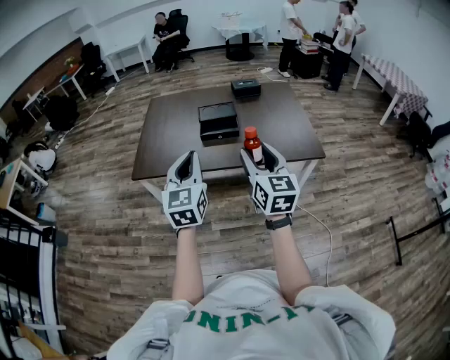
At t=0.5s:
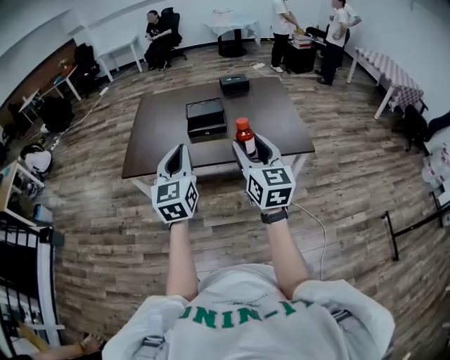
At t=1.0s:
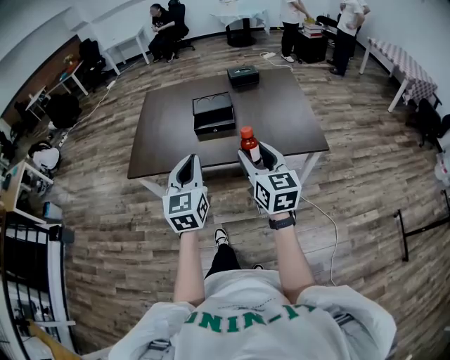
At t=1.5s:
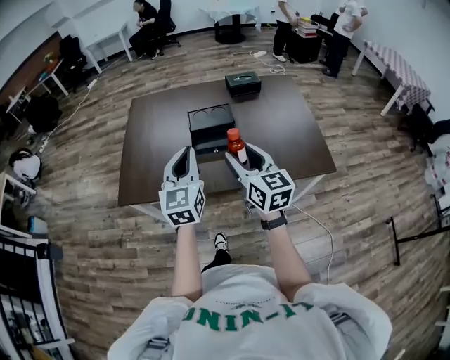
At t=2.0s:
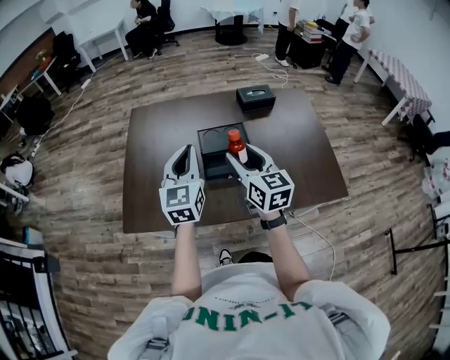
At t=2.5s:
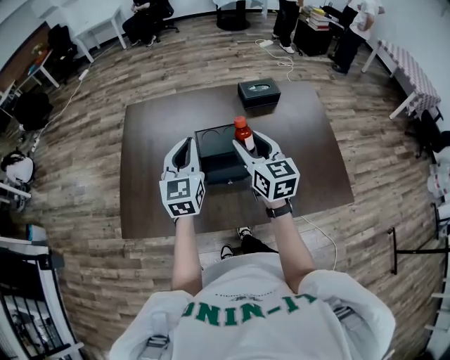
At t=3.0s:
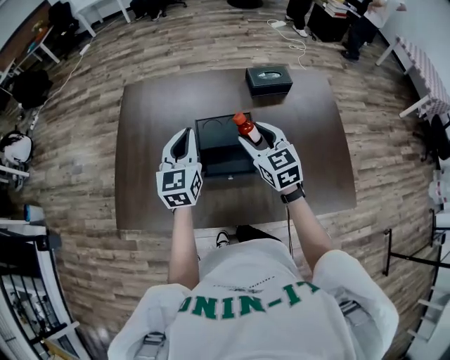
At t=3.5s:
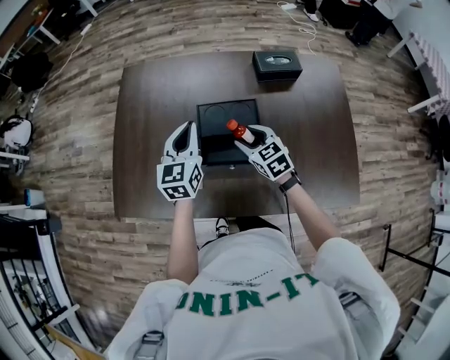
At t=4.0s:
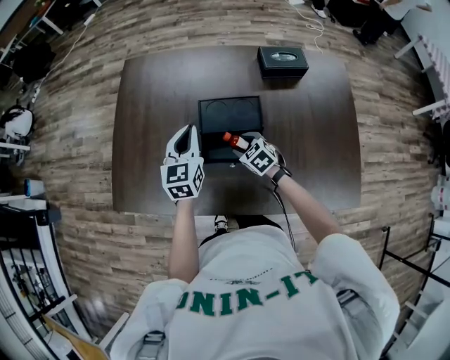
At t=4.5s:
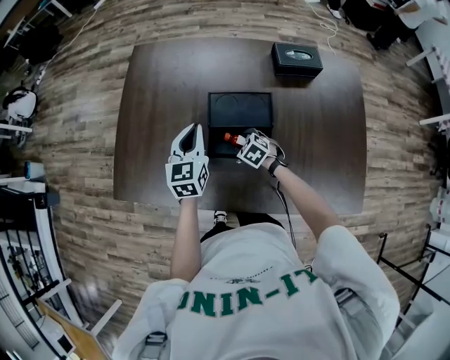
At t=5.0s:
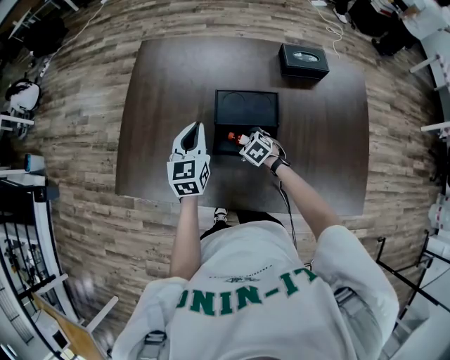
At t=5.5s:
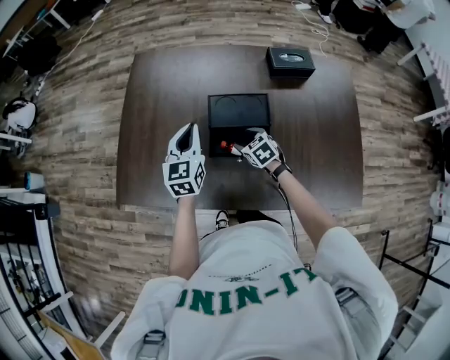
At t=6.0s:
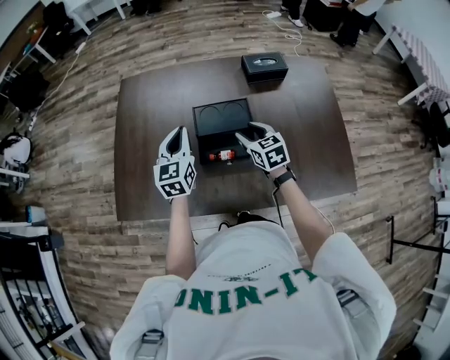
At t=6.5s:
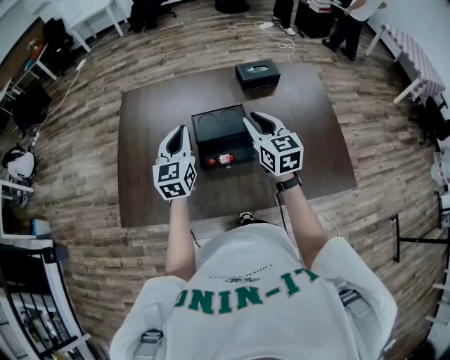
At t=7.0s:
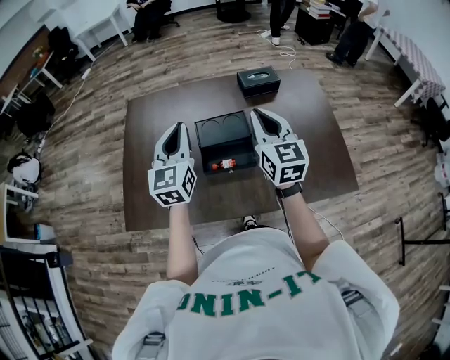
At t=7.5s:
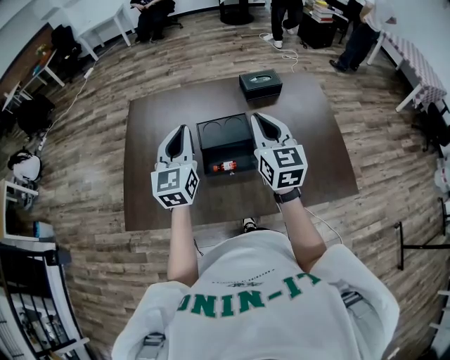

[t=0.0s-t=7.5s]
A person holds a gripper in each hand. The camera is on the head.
t=0.0s to t=2.0s: Both grippers are carried forward, about 40 cm.
t=2.0s to t=4.0s: The left gripper goes about 25 cm downward and forward, while the right gripper goes approximately 35 cm downward and forward, and angles its fingers downward, by roughly 40 degrees.
t=5.5s to t=7.5s: The right gripper goes approximately 35 cm upward, angles its fingers upward, by approximately 50 degrees, and closes; the left gripper is displaced upward by roughly 15 cm.

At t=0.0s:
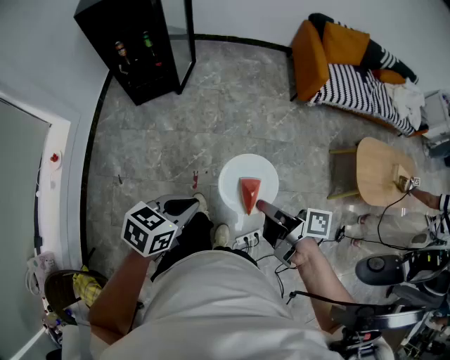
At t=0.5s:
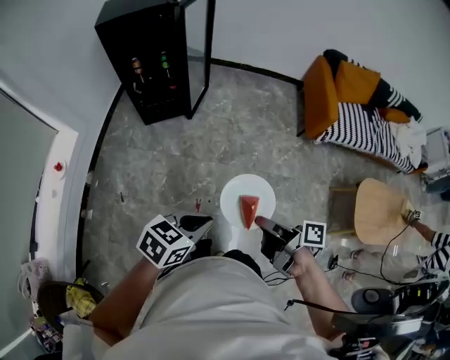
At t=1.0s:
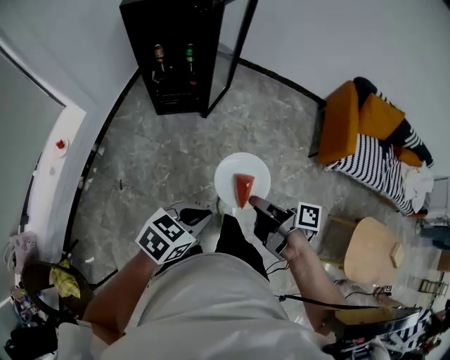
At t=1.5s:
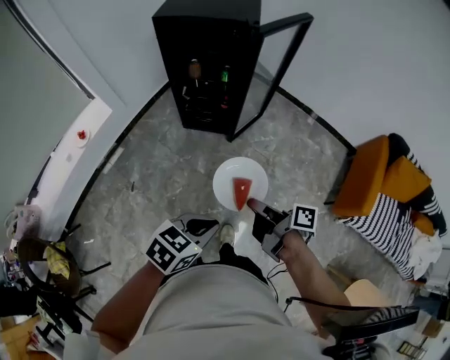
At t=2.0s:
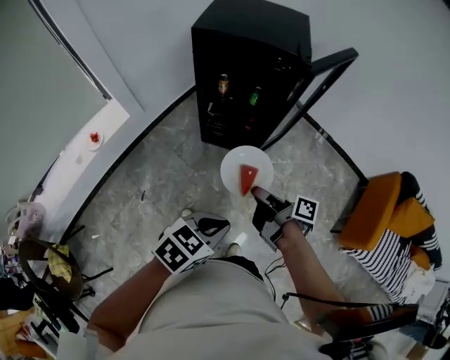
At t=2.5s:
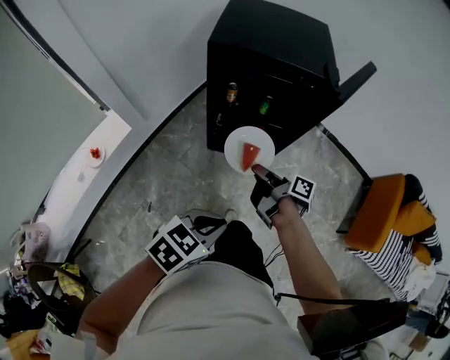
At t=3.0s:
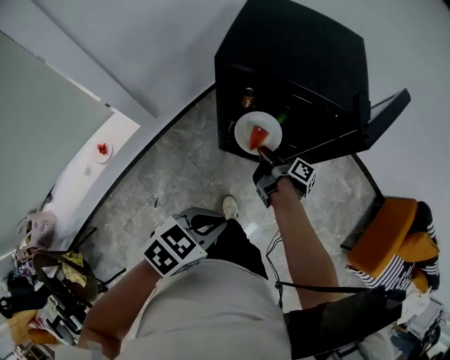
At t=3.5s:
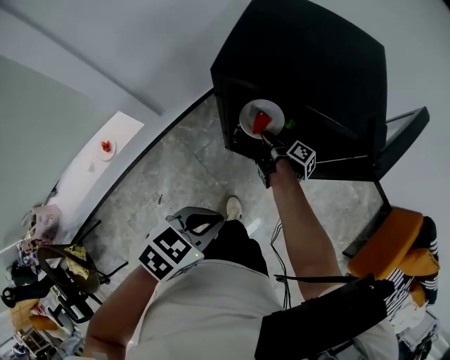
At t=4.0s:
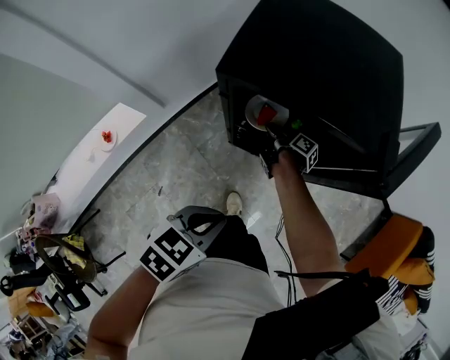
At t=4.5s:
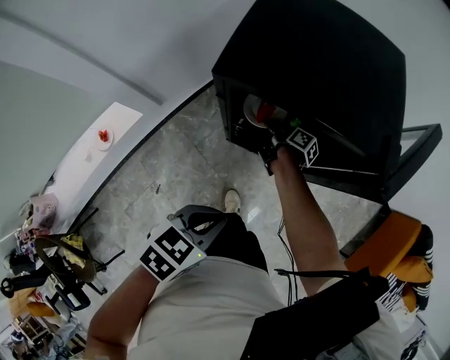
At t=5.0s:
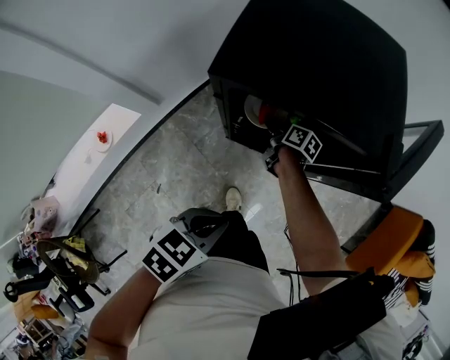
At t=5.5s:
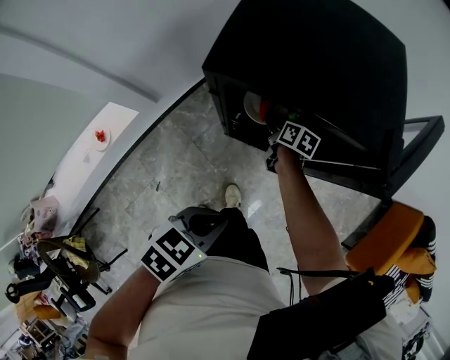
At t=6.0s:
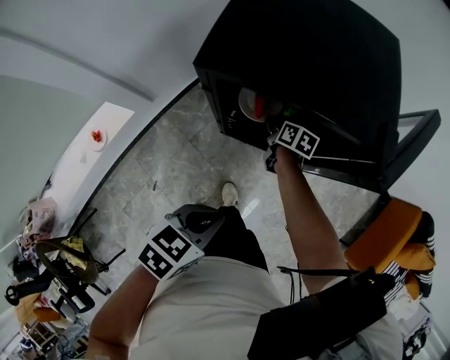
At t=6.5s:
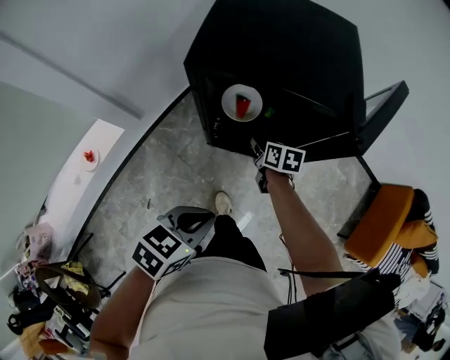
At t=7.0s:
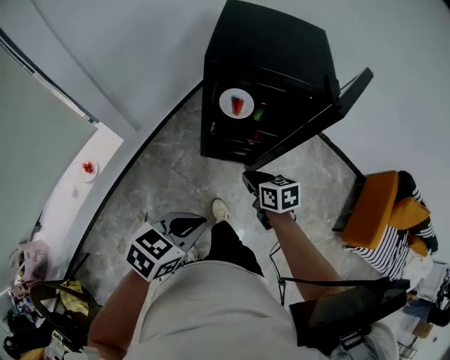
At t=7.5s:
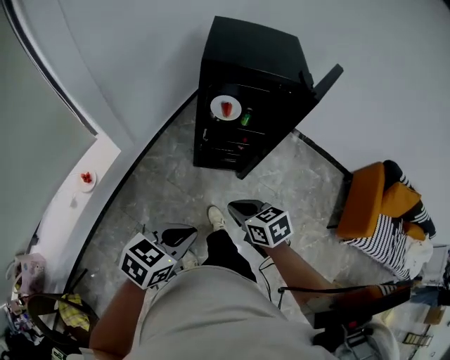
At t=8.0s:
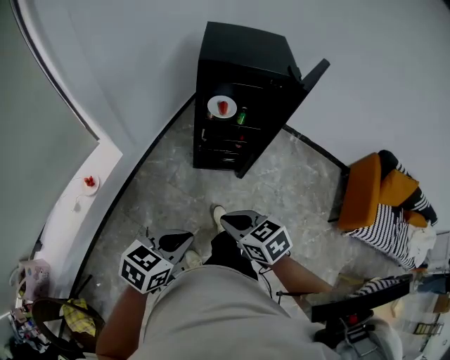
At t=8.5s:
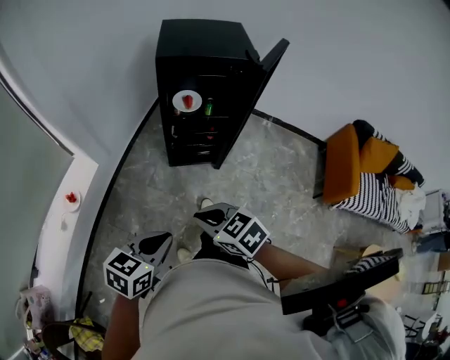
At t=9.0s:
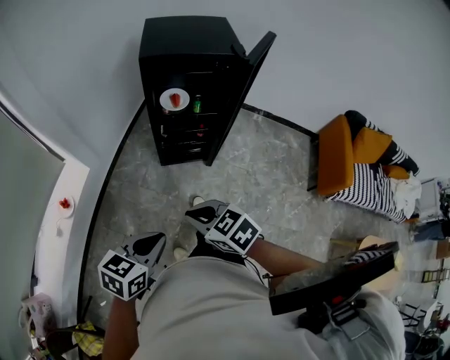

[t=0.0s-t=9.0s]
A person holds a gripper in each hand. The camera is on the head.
t=0.0s to t=2.0s: The left gripper ends up roughly 40 cm from where it was, and swivels approximately 20 degrees.
t=2.0s to t=4.5s: The left gripper changes place by approximately 30 cm.
t=4.5s to t=7.0s: The left gripper ends up about 15 cm from where it was.
t=7.0s to t=9.0s: The left gripper ends up some 15 cm from where it was.

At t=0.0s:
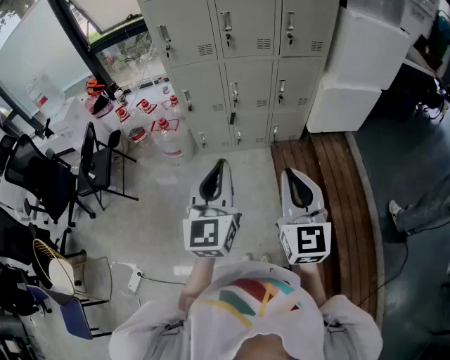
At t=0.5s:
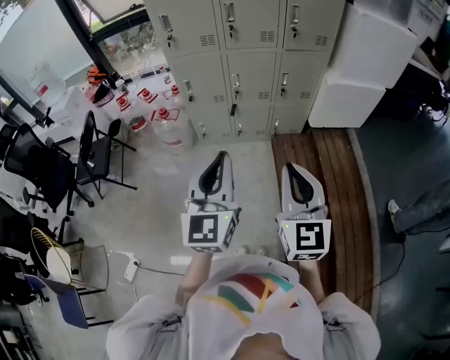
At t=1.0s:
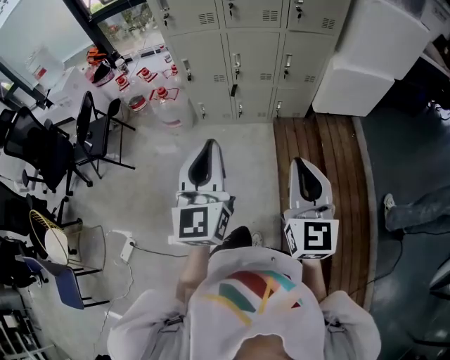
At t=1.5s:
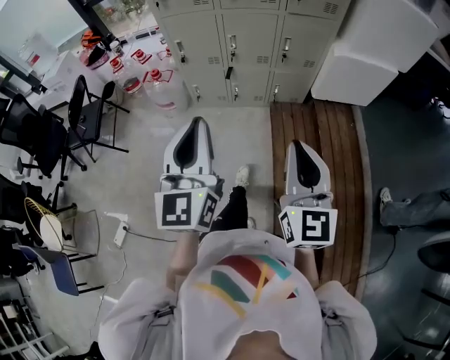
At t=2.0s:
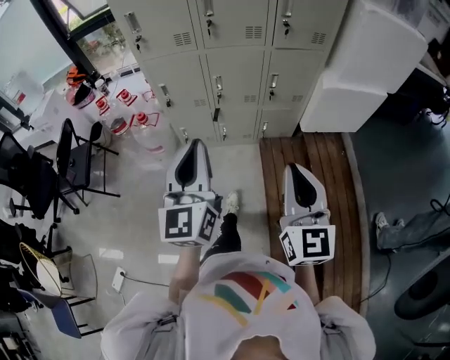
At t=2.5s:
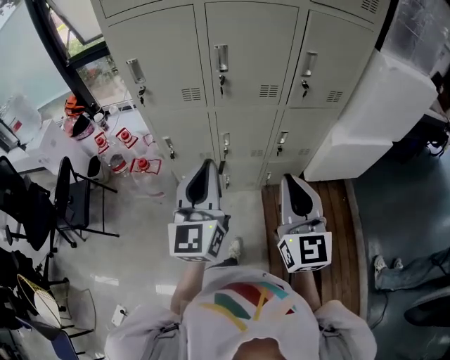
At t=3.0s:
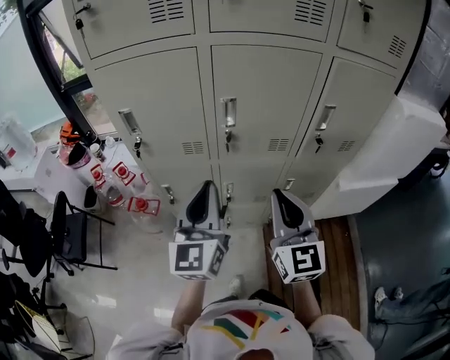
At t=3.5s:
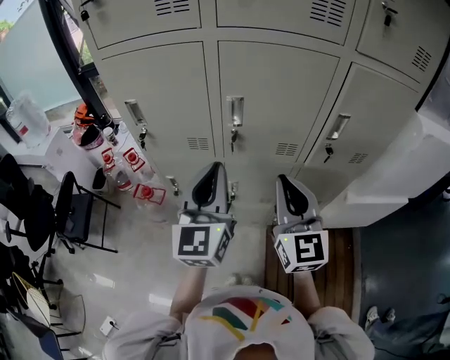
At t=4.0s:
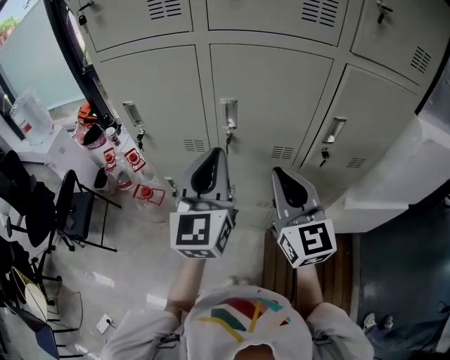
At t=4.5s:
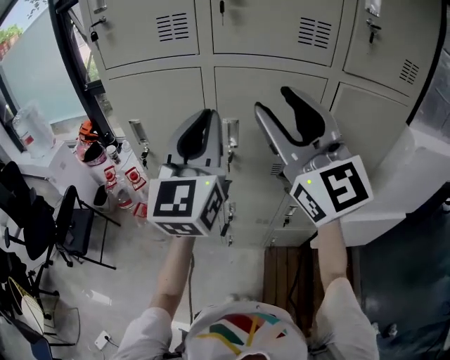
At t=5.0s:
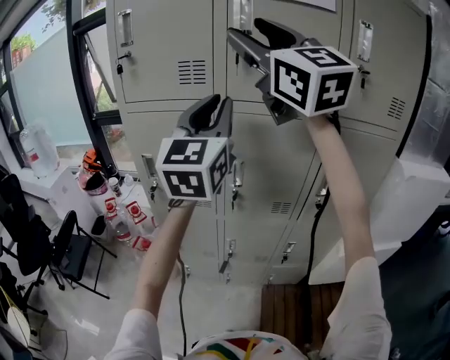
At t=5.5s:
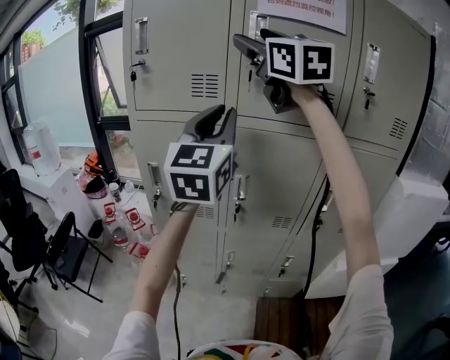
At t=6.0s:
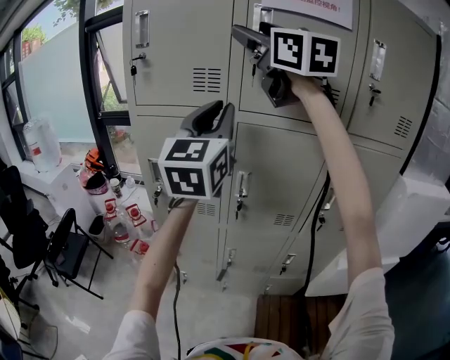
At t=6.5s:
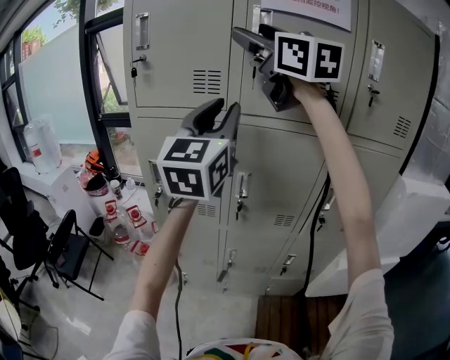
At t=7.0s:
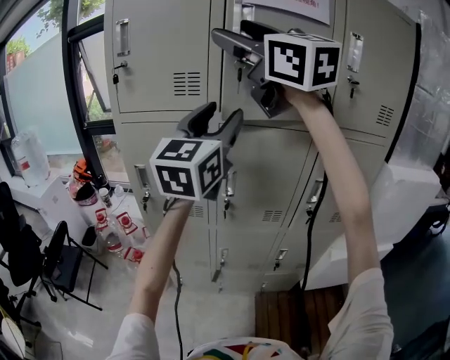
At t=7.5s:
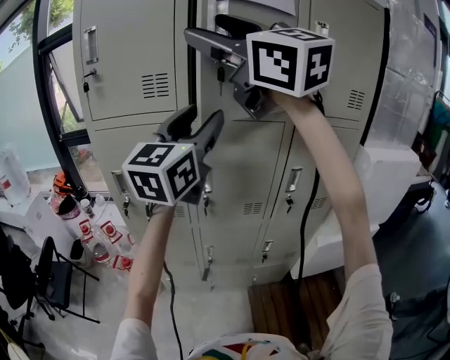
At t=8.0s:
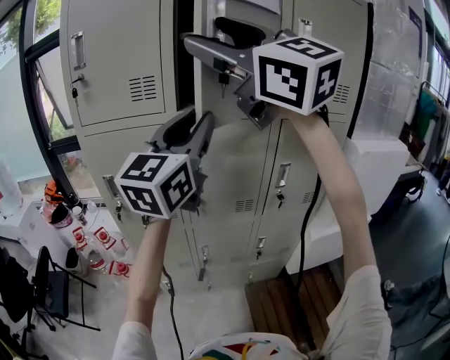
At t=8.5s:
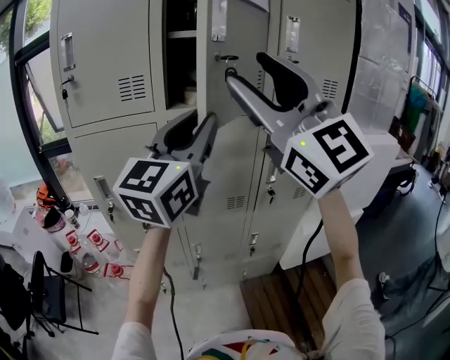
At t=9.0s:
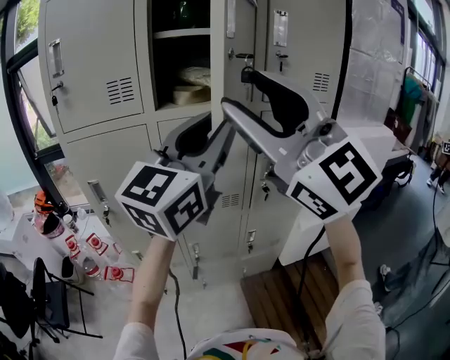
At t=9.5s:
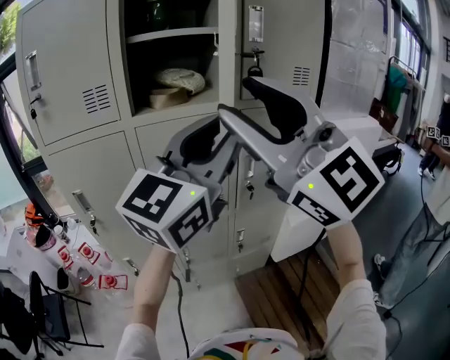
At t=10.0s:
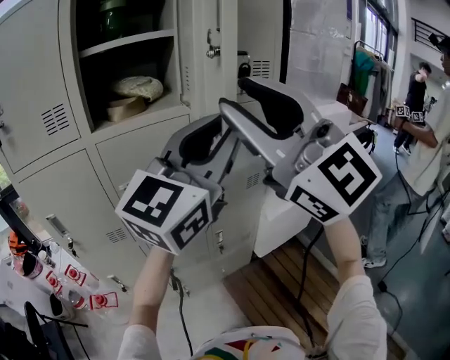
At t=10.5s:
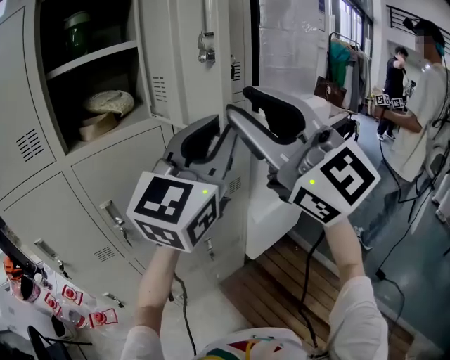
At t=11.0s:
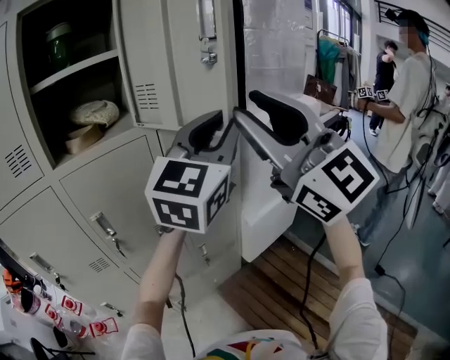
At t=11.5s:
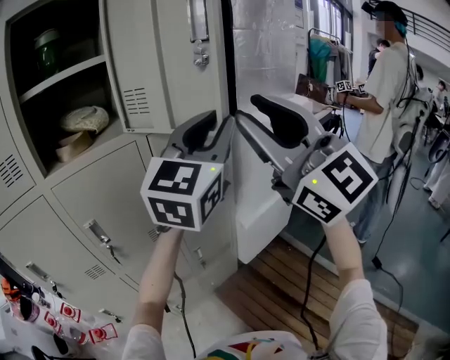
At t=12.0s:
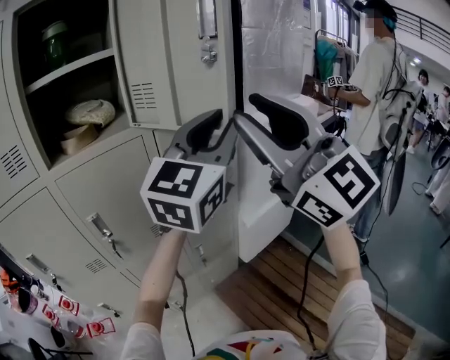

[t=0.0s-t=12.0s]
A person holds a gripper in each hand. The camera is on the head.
t=0.0s to t=2.0s: The left gripper moves forward, approximately 15 cm, while the right gripper moves forward and to the right, approximately 15 cm.
t=2.0s to t=4.0s: Both grippers move forward, roughly 40 cm.
t=4.0s to t=6.0s: The left gripper goes roughly 20 cm upward. Meanwhile the right gripper shifts some 40 cm upward, changes its angle by some 20 degrees, and opens.
t=6.0s to t=8.0s: The left gripper is displaced backward and to the right by some 10 cm, turns by about 20 degrees, and opens, then closes again, while the right gripper heads backward, covering some 15 cm.
t=8.0s to t=10.0s: The right gripper moves roughly 20 cm, rotates approximately 30 degrees, and closes, while the left gripper shifts by roughly 20 cm, and swivels roughly 30 degrees.
t=10.0s to t=12.0s: The right gripper shifts about 10 cm to the right, while the left gripper is displaced to the right and forward by roughly 10 cm.
